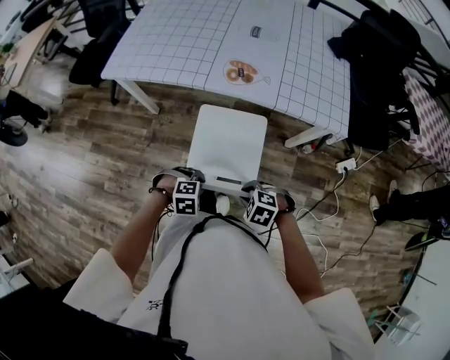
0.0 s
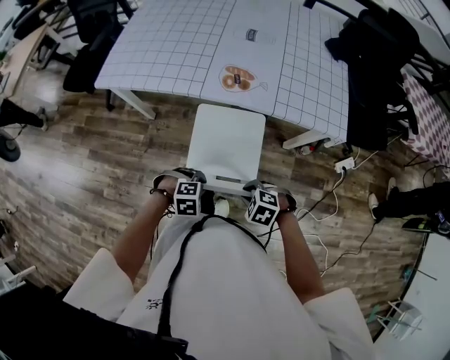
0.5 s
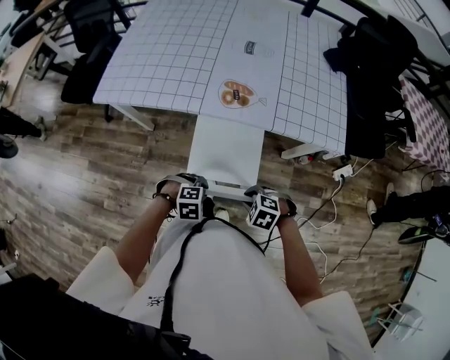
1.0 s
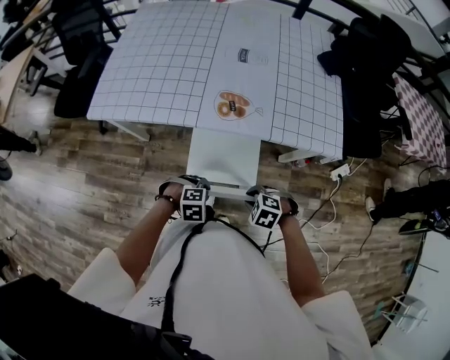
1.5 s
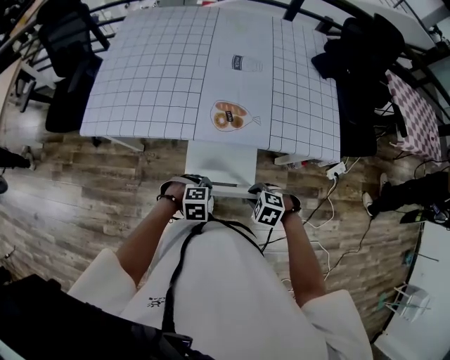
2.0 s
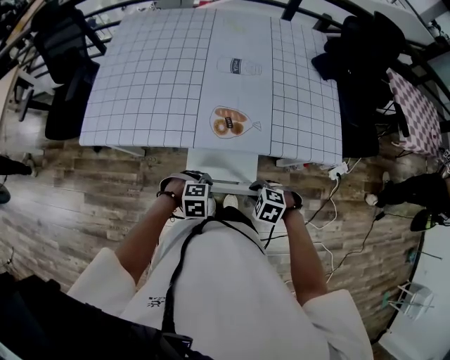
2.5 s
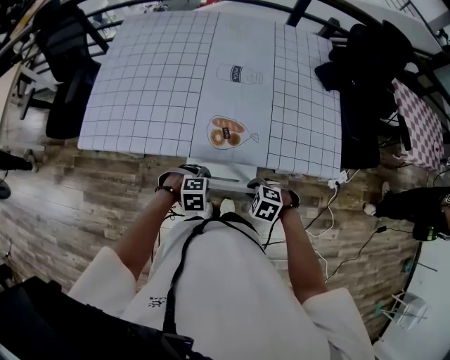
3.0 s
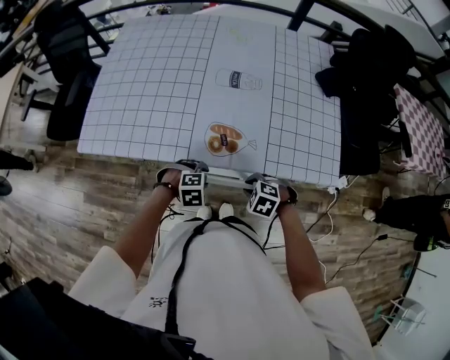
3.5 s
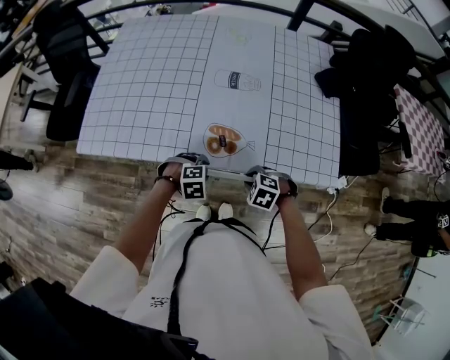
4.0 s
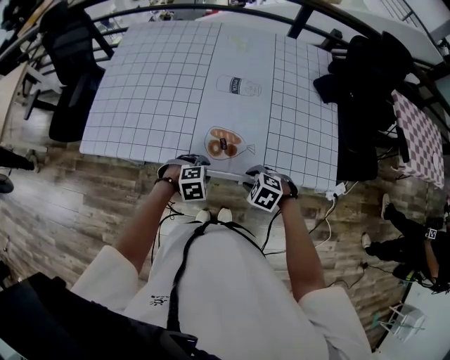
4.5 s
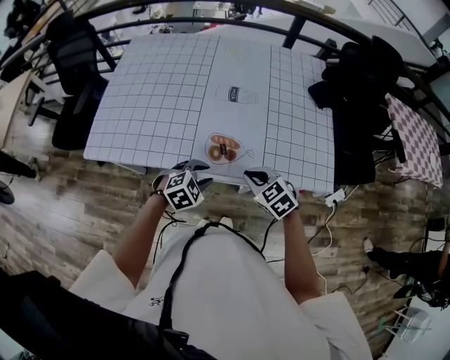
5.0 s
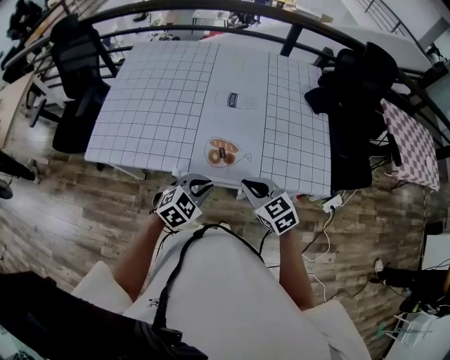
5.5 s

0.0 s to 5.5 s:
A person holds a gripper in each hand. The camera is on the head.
0.0 to 2.0 s: The right gripper changes place by some 20 cm, while the left gripper changes place by about 20 cm.
2.0 to 3.5 s: The left gripper shifts by some 15 cm. The right gripper changes place by roughly 15 cm.
3.5 to 5.5 s: Both grippers travel together upward, approximately 15 cm. The left gripper points its fingers some 30 degrees further upward, and closes up. Meanwhile the right gripper tilts its fingers roughly 40 degrees upward.

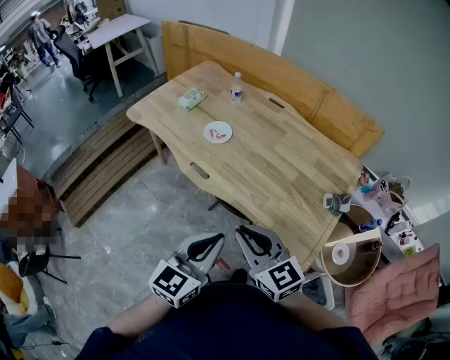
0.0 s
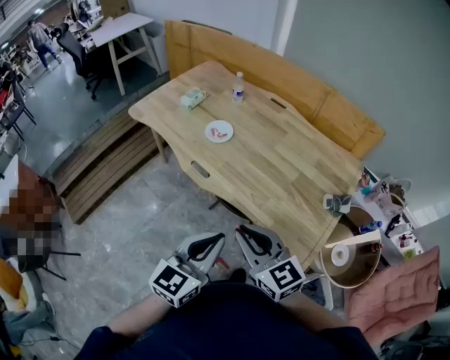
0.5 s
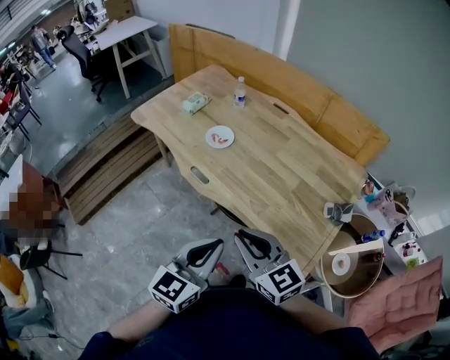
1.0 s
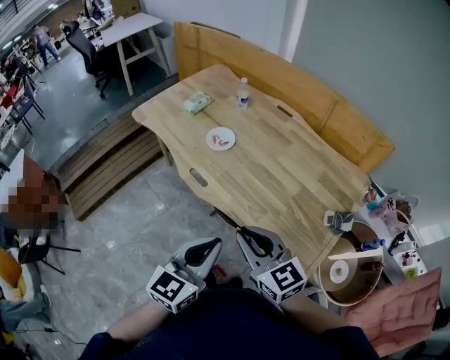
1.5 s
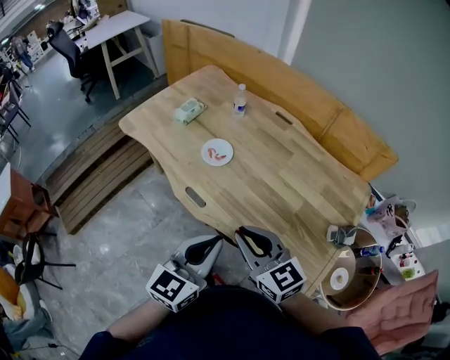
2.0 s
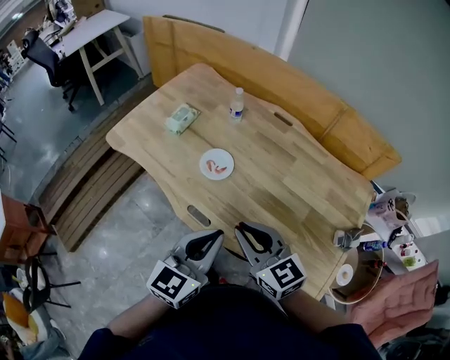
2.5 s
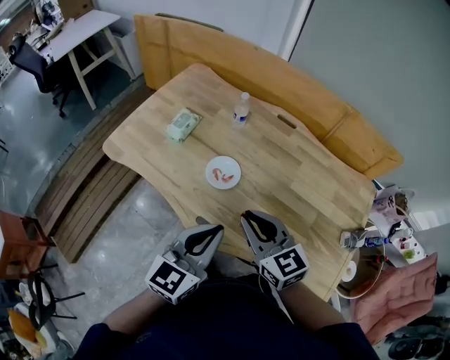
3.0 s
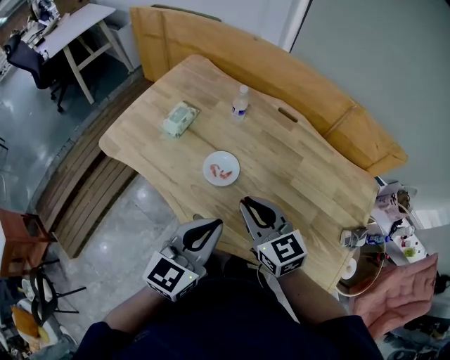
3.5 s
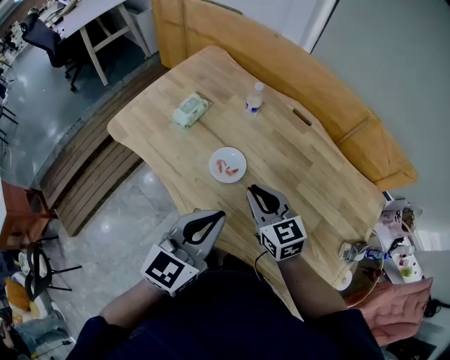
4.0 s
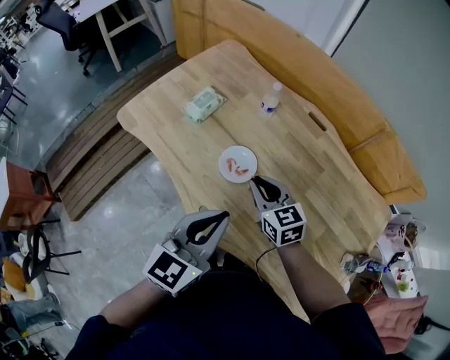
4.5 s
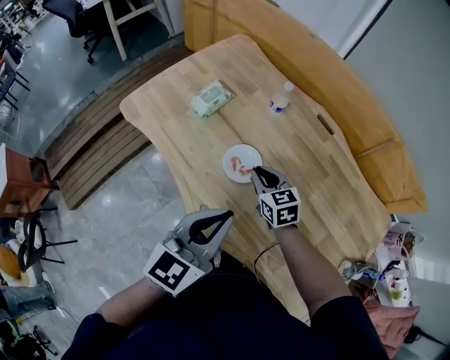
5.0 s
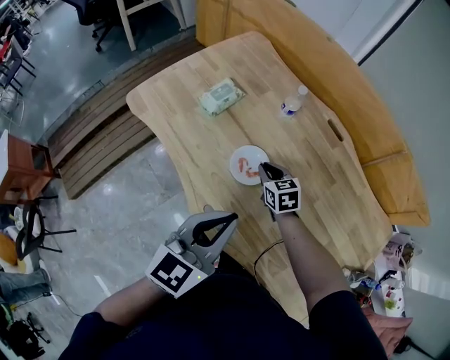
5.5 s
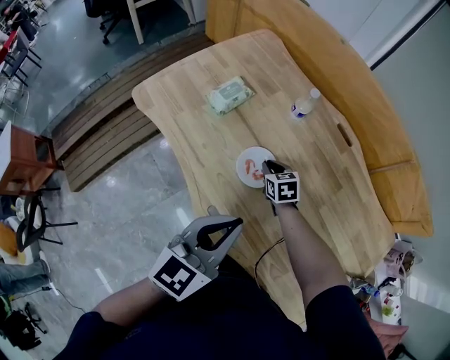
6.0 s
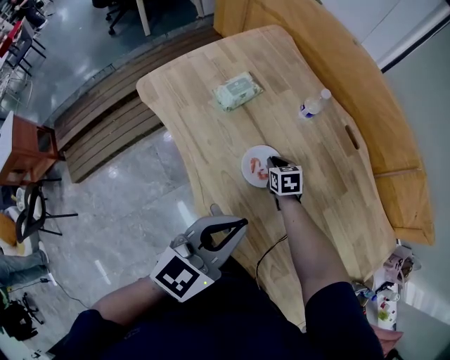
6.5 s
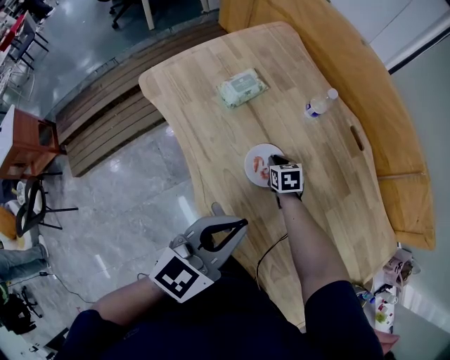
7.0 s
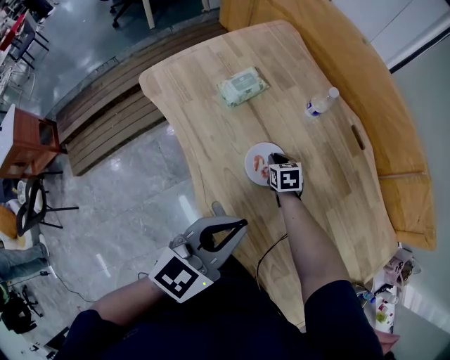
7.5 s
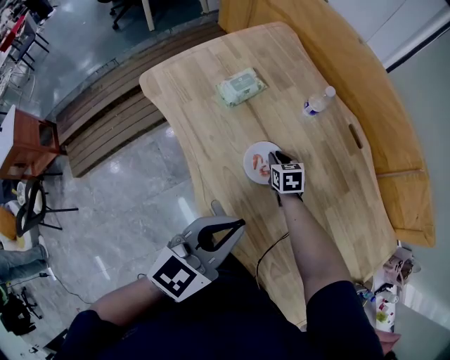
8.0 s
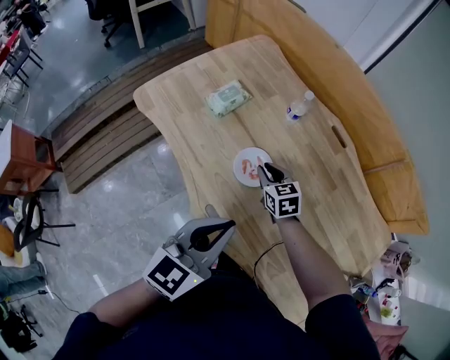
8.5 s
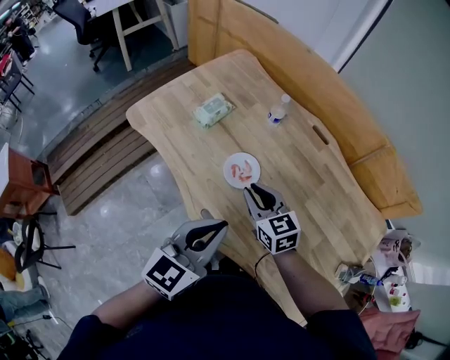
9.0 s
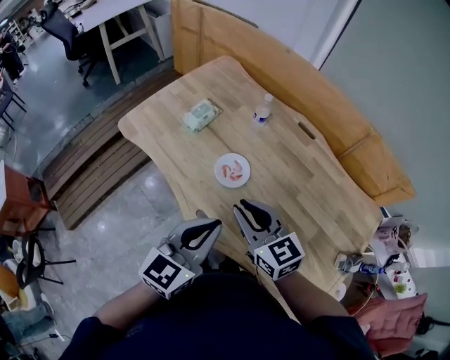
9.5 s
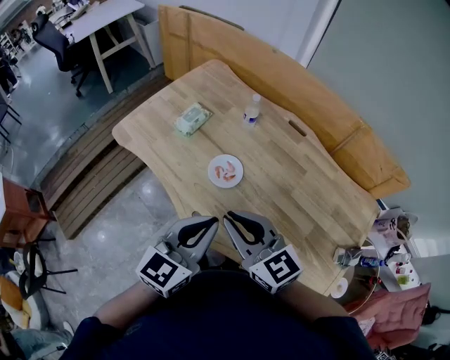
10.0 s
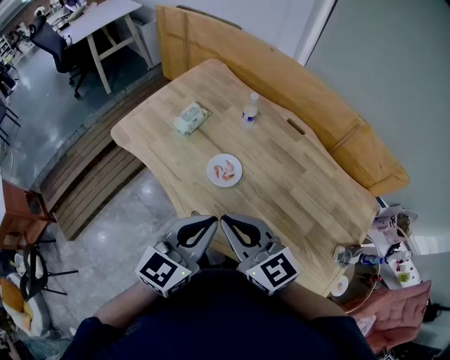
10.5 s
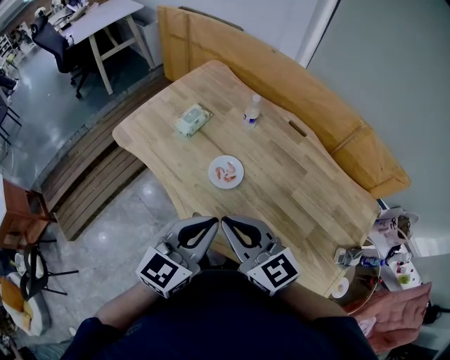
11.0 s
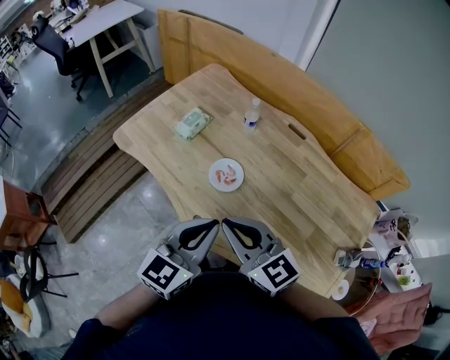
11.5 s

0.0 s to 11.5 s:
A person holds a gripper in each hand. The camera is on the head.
0.0 to 2.0 s: The grippers both shift forward by about 15 cm.
2.0 to 4.0 s: Both grippers travel together forward, about 25 cm.
4.0 to 6.0 s: The left gripper changes place by some 5 cm. The right gripper goes about 25 cm downward and forward, and turns by some 30 degrees.
6.0 to 7.5 s: The right gripper changes place by about 5 cm.
7.5 to 9.5 s: The right gripper heads upward and backward, covering roughly 40 cm, and tips its fingers upward by about 40 degrees. Meanwhile the left gripper shifts some 10 cm backward and upward.
9.5 to 11.5 s: The right gripper travels upward by some 5 cm.

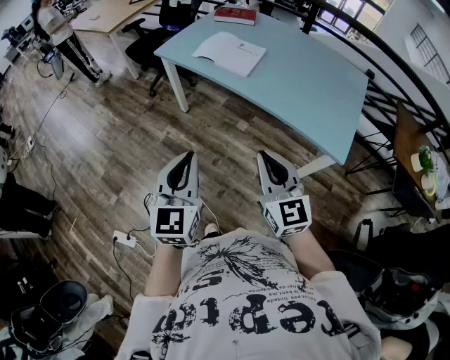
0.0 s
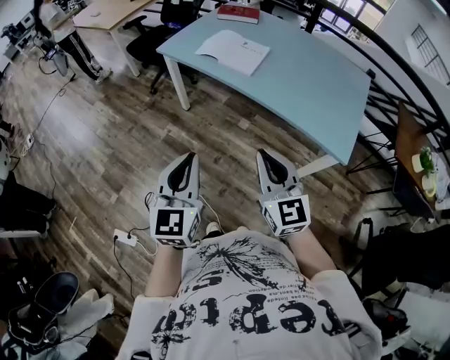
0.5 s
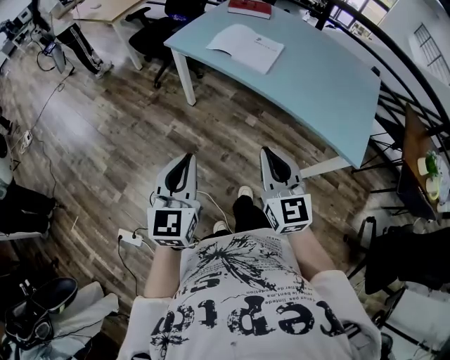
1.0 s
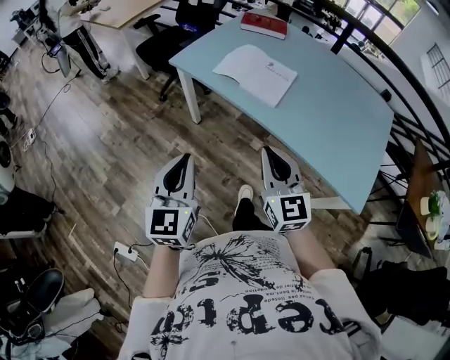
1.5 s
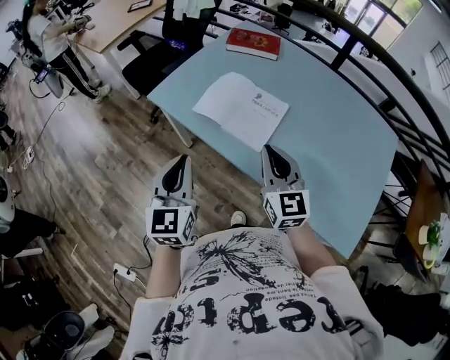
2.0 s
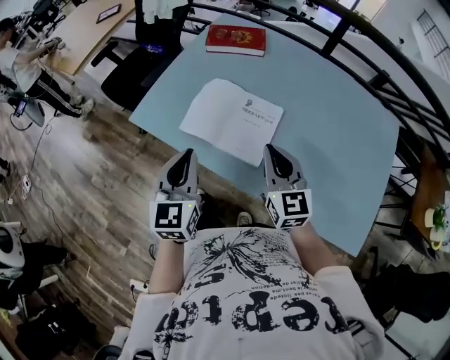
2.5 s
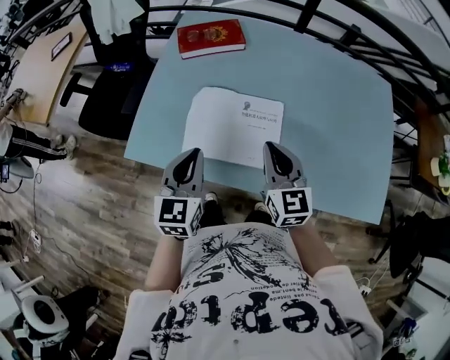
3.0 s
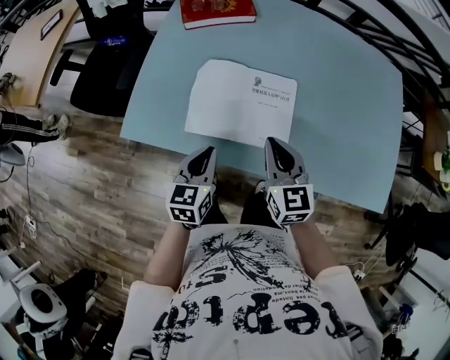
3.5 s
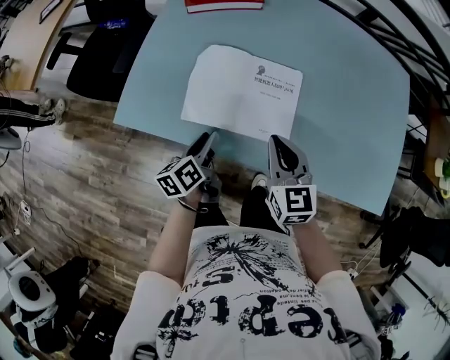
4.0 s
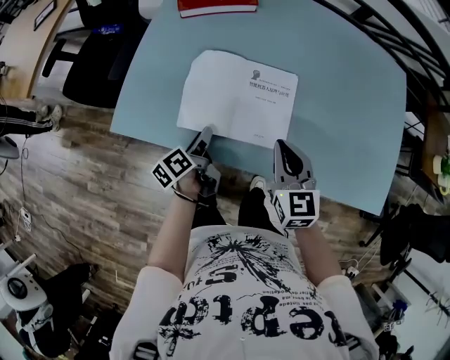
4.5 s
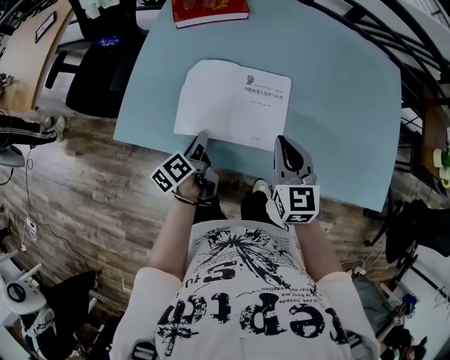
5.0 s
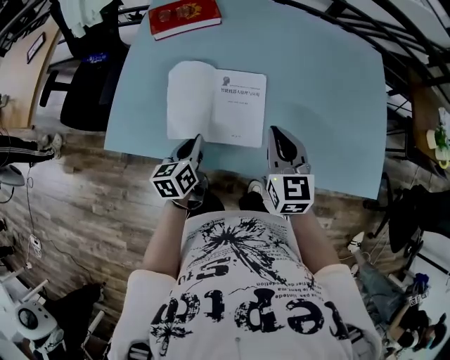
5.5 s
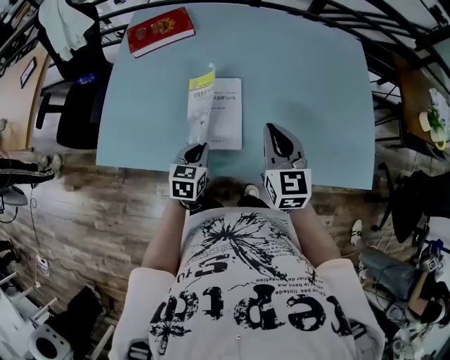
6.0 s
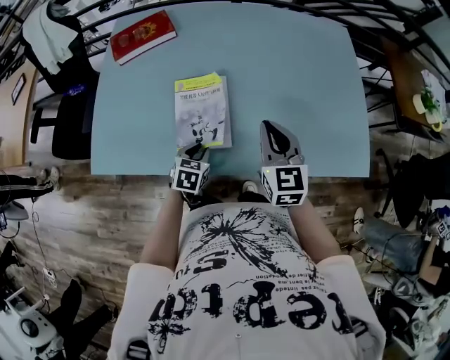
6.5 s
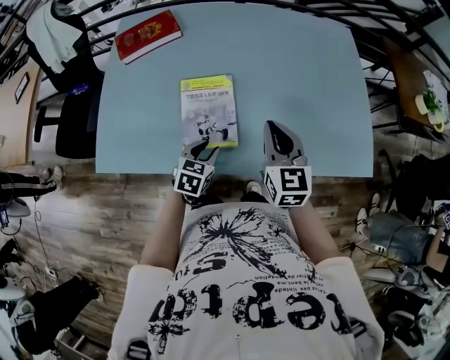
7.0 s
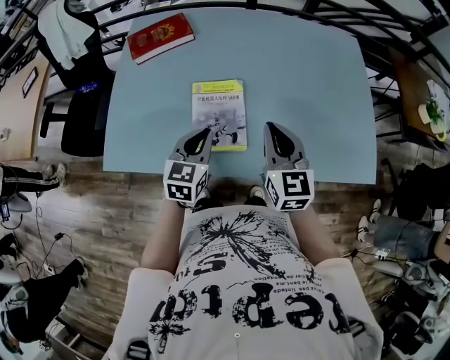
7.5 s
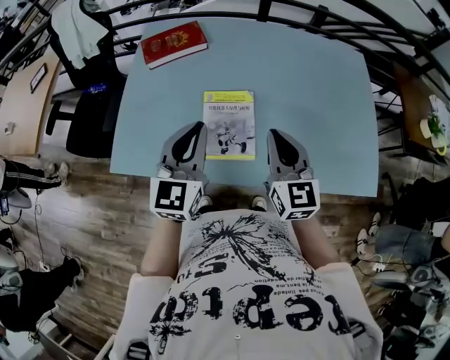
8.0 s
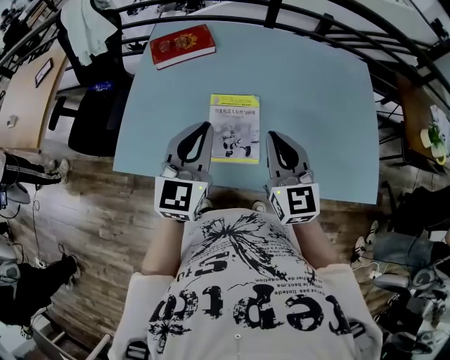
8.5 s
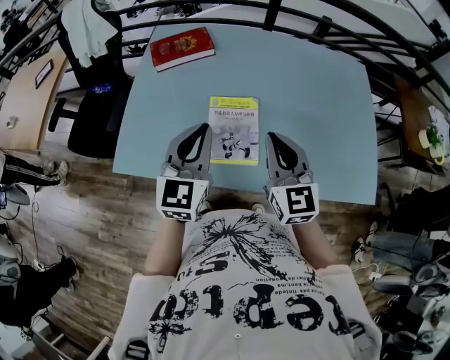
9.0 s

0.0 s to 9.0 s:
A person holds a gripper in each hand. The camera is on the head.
0.0 to 2.0 s: Both grippers are carried forward, about 40 cm.
2.0 to 4.5 s: The left gripper travels downward by approximately 30 cm, twists about 60 degrees counterclockwise, seen from behind, and opens. The right gripper moves some 20 cm, and turns by approximately 30 degrees.
4.5 to 7.0 s: The left gripper shifts about 20 cm to the right, rotates around the line of its fingers by some 80 degrees, clockwise from behind, and closes, then opens again. The right gripper is displaced to the right and upward by some 15 cm.
7.0 to 9.0 s: The right gripper shifts about 10 cm to the left and upward, while the left gripper moves upward, about 25 cm, tips its fingers upward by some 40 degrees, and closes up.
